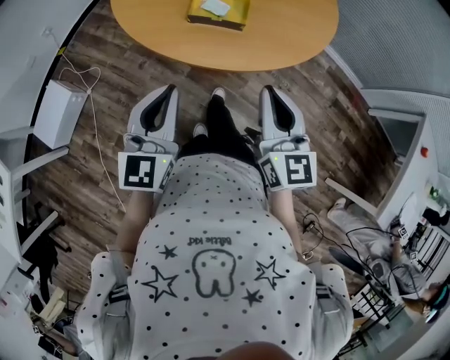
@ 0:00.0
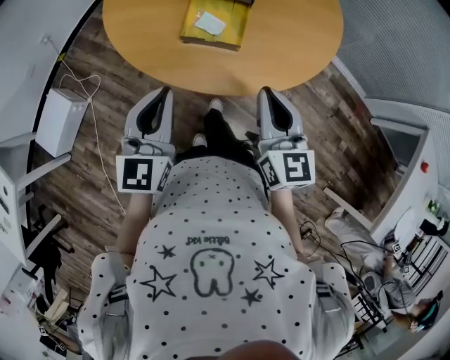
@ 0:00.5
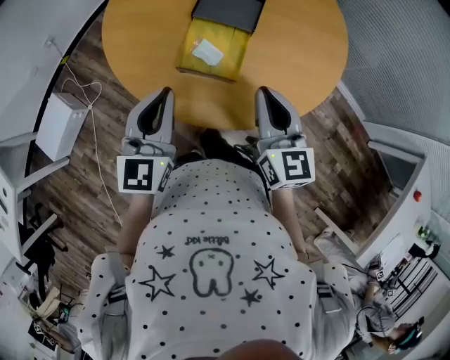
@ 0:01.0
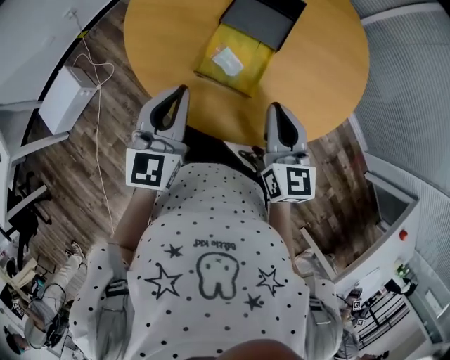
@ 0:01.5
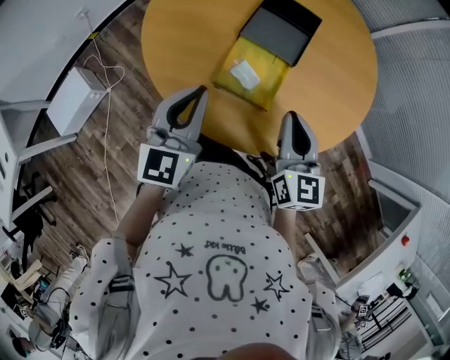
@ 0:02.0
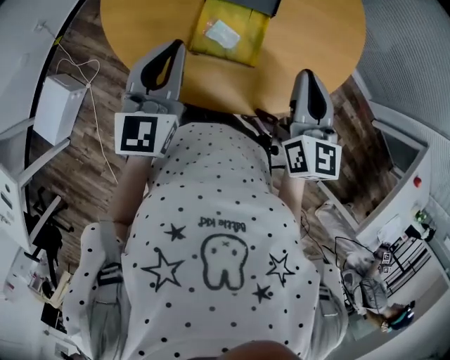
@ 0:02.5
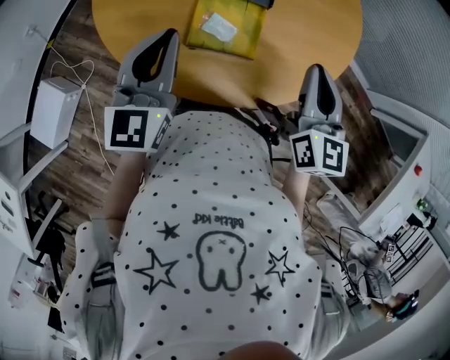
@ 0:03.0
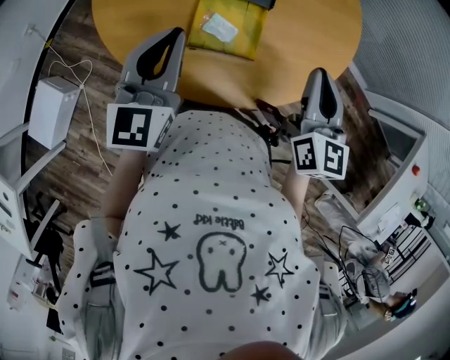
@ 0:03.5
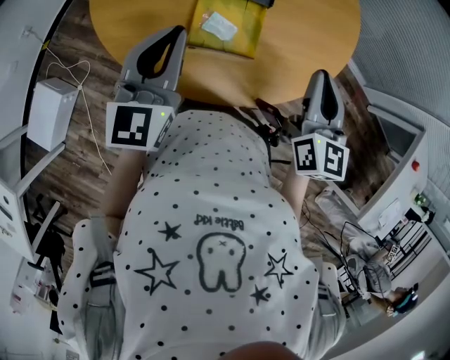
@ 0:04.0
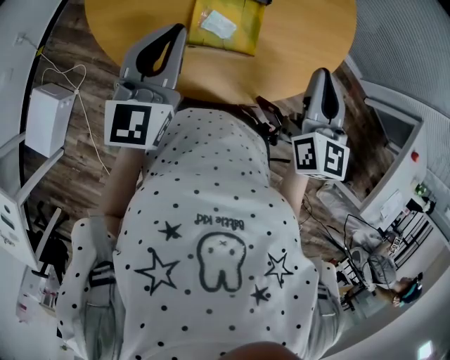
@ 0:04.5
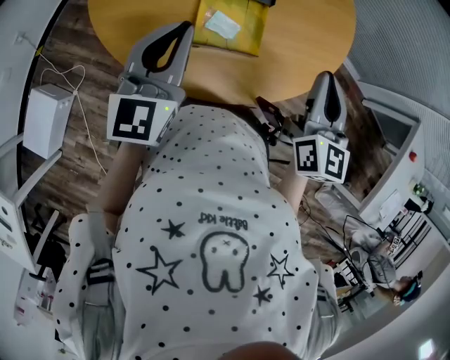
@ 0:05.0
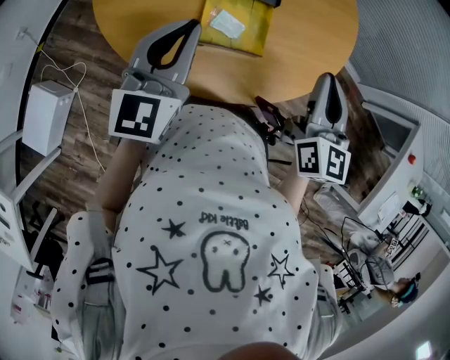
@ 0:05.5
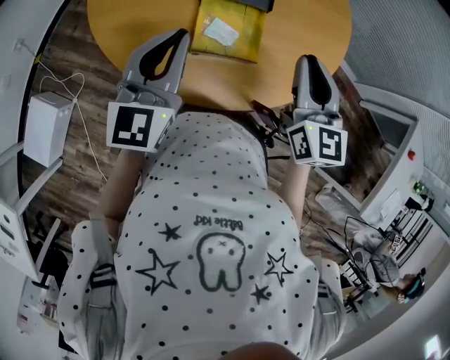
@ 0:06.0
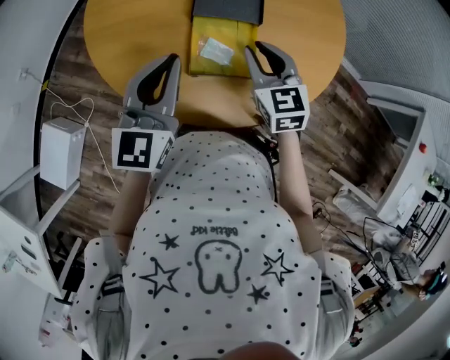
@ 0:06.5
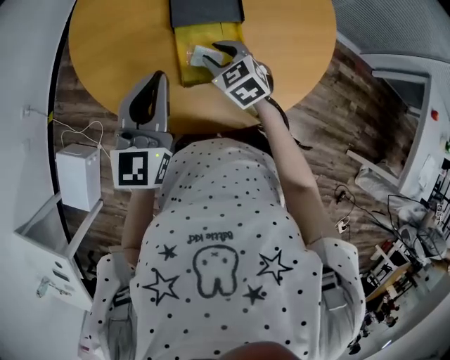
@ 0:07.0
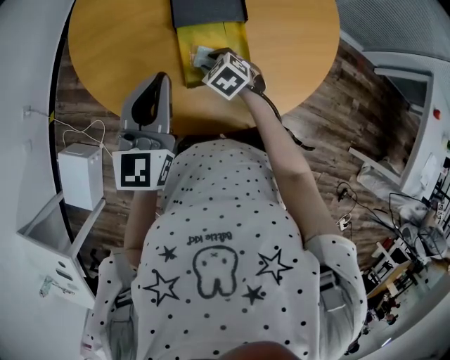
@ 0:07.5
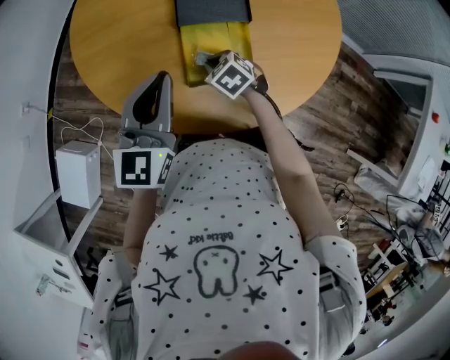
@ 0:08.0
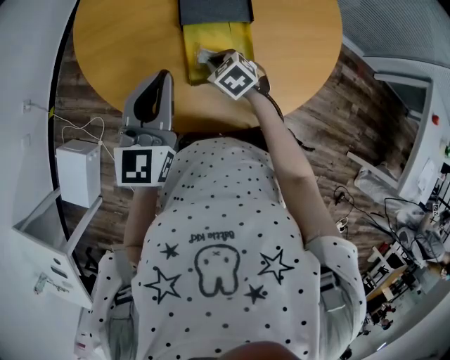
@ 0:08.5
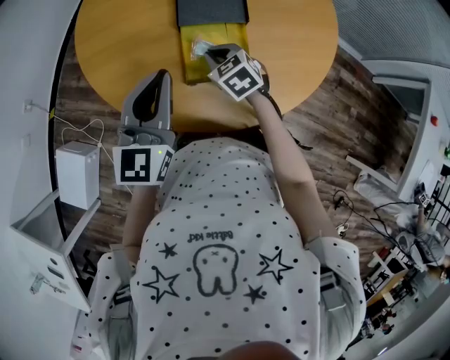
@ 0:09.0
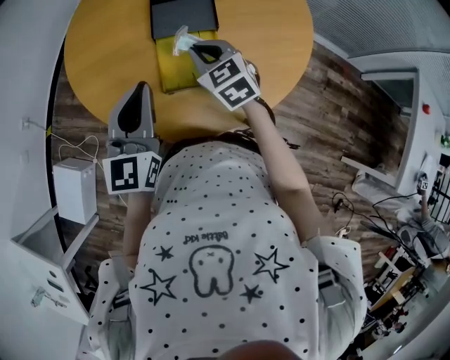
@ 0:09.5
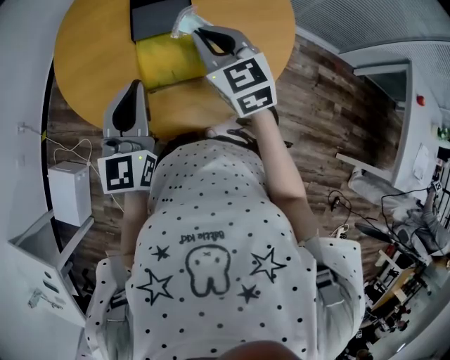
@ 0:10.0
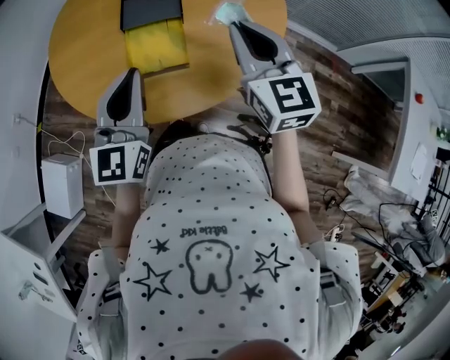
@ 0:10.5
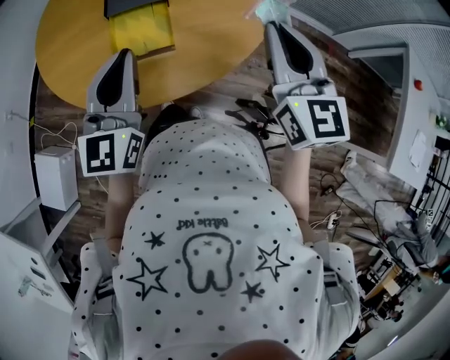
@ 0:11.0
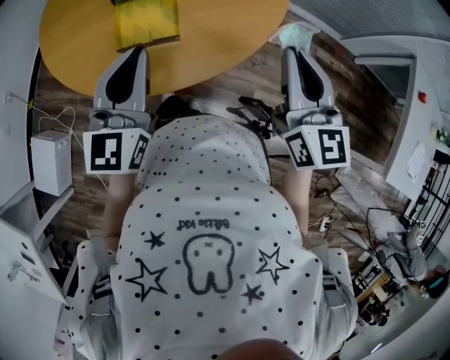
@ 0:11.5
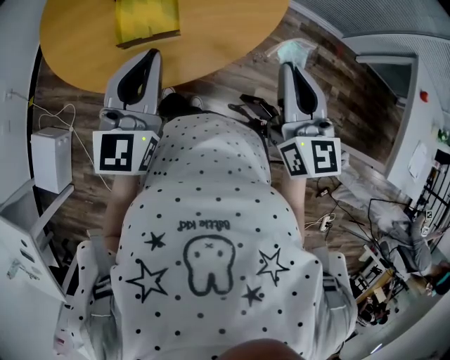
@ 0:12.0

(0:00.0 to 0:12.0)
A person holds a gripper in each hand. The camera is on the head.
0:00.0 - 0:02.0: The grippers both shift forward by roughly 25 cm.
0:02.0 - 0:04.0: The right gripper moves to the right, approximately 10 cm, and rotates some 20 degrees. Meanwhile the left gripper changes place by approximately 5 cm.
0:04.0 - 0:06.0: The right gripper is displaced to the left by approximately 10 cm.
0:06.0 - 0:08.0: The right gripper heads downward and to the left, covering some 30 cm, points its fingers about 50 degrees further downward, and opens, then closes once more.
0:08.0 - 0:10.0: The right gripper goes roughly 30 cm upward and to the right, and angles its fingers upward, by about 40 degrees. Meanwhile the left gripper is displaced to the right and backward by some 10 cm.
0:10.0 - 0:12.0: The left gripper goes some 15 cm to the right and backward, while the right gripper travels to the right and backward by approximately 30 cm, and turns by about 30 degrees.

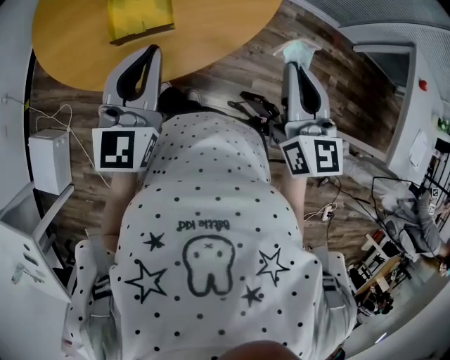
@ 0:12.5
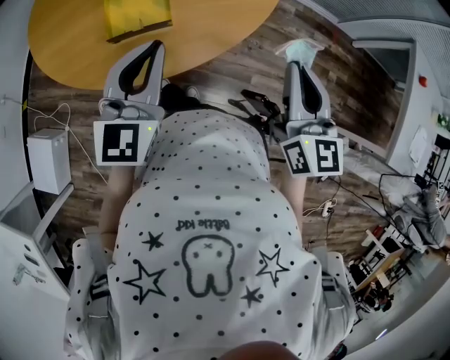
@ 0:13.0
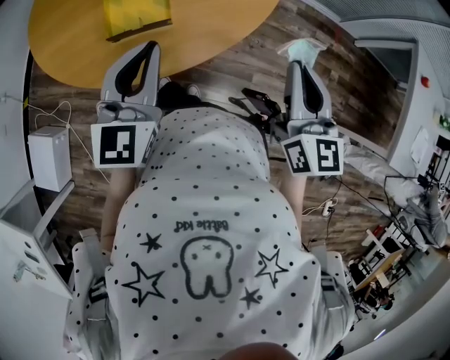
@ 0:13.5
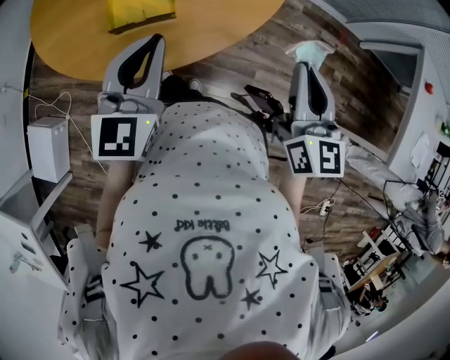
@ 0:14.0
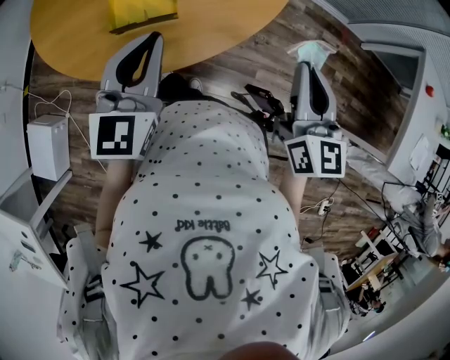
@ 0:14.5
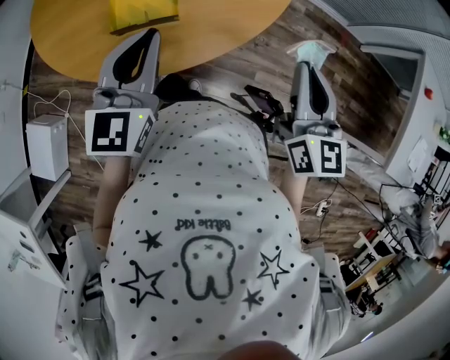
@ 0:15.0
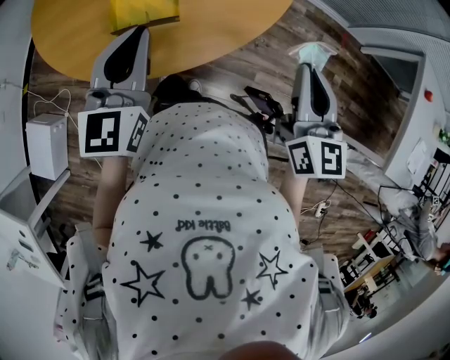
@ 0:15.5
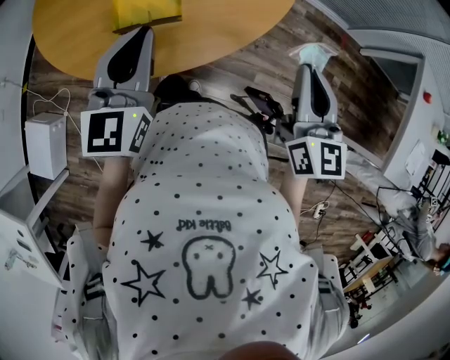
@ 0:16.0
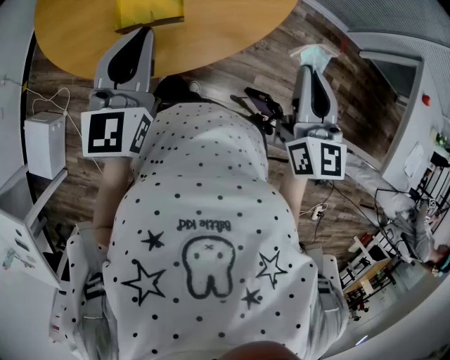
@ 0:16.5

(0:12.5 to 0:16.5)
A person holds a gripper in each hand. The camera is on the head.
0:12.5 - 0:16.5: There are only small adjustments of the grippers.

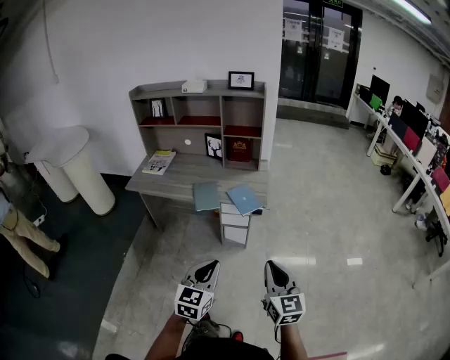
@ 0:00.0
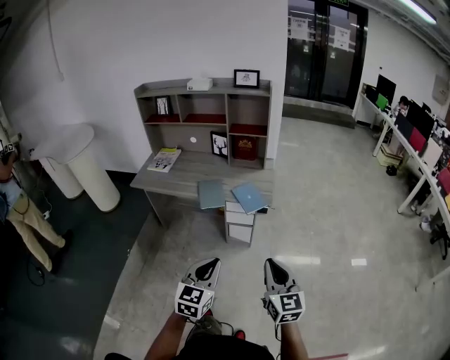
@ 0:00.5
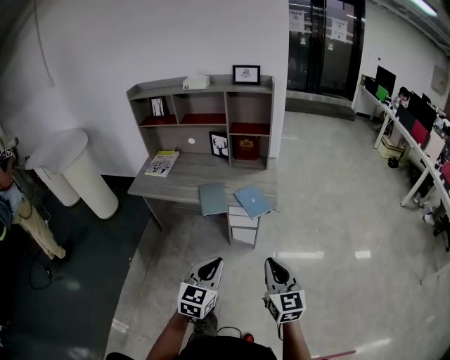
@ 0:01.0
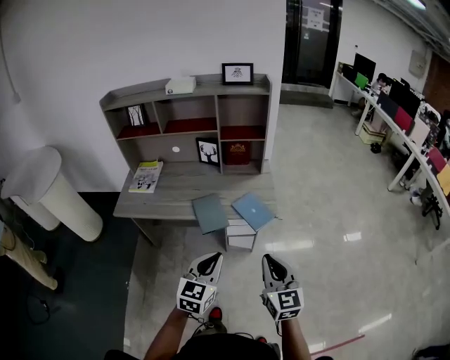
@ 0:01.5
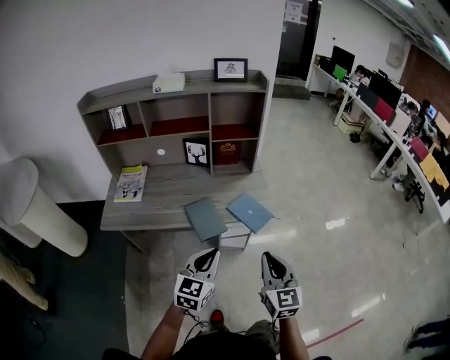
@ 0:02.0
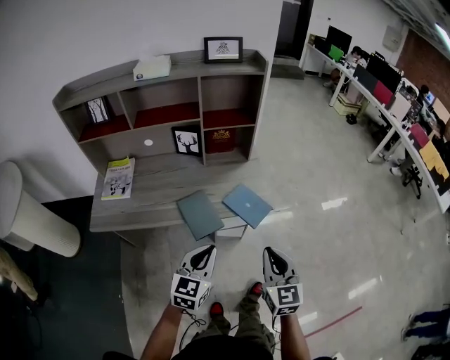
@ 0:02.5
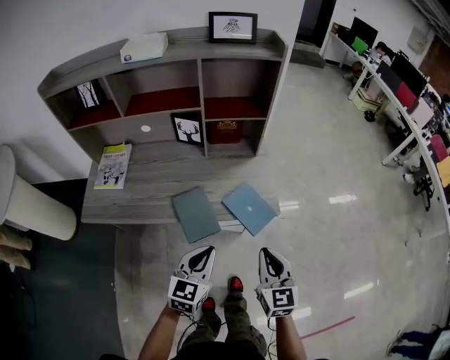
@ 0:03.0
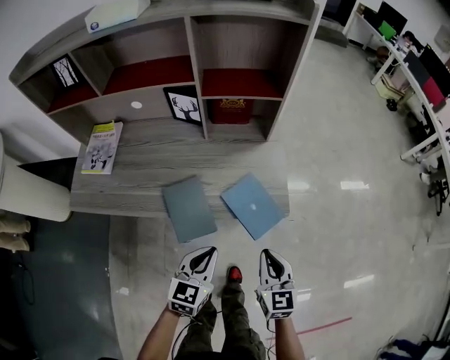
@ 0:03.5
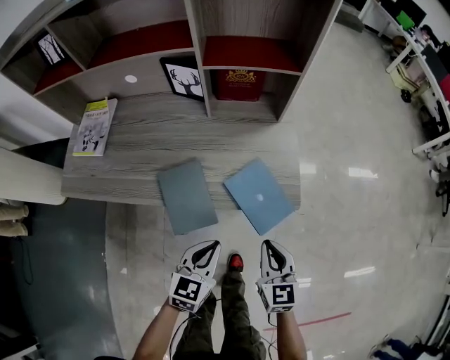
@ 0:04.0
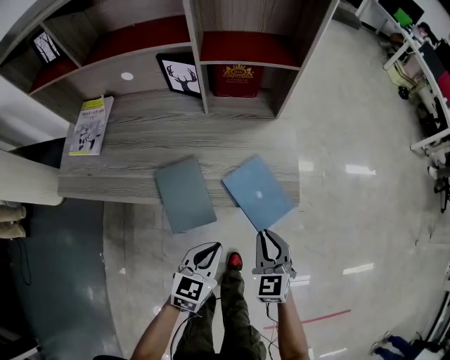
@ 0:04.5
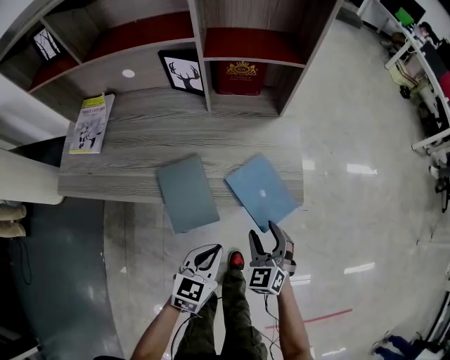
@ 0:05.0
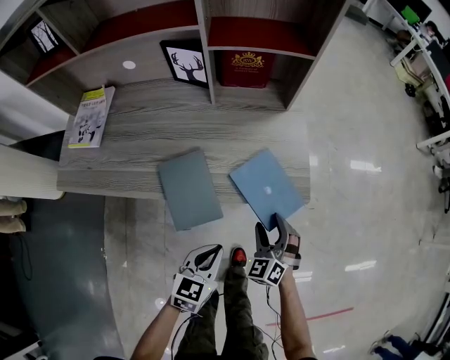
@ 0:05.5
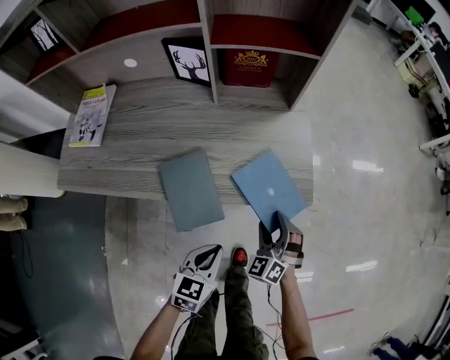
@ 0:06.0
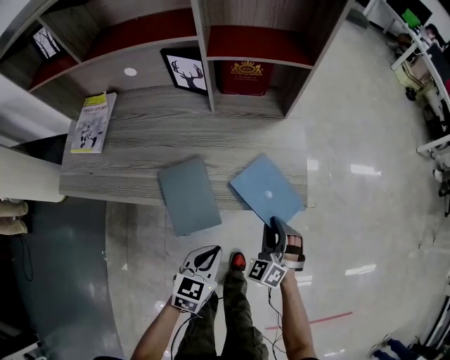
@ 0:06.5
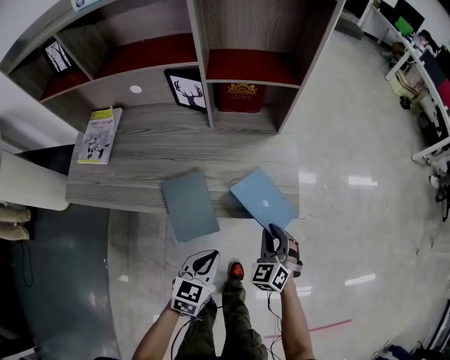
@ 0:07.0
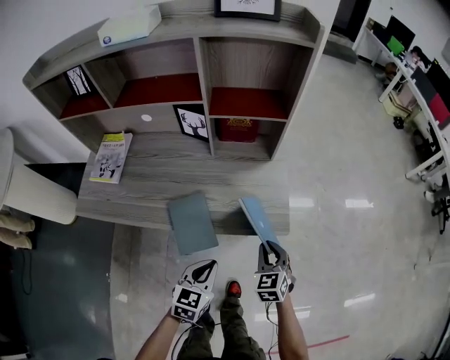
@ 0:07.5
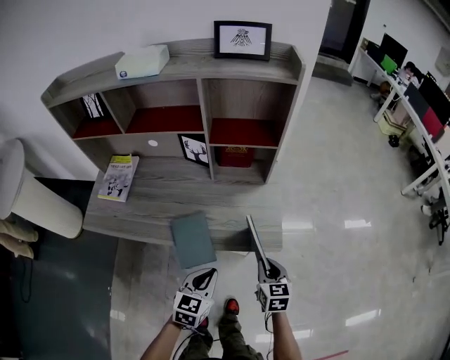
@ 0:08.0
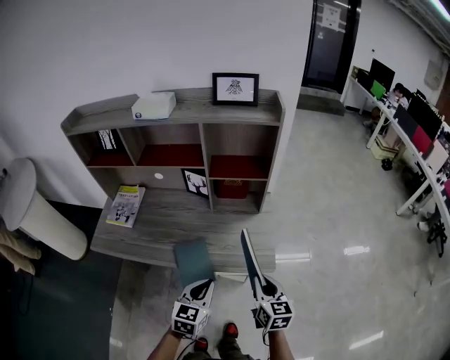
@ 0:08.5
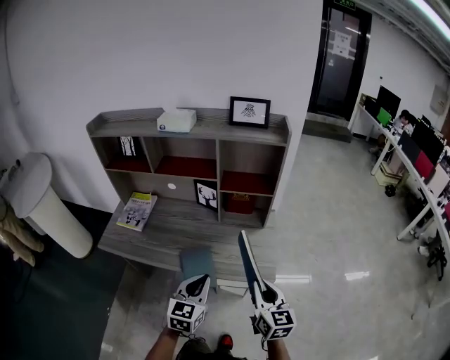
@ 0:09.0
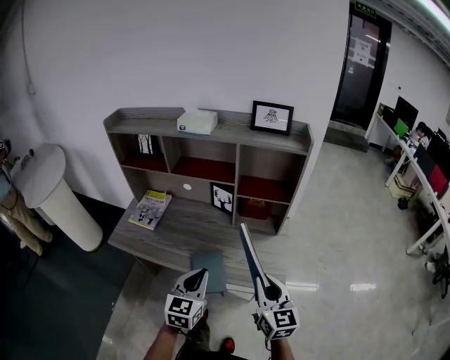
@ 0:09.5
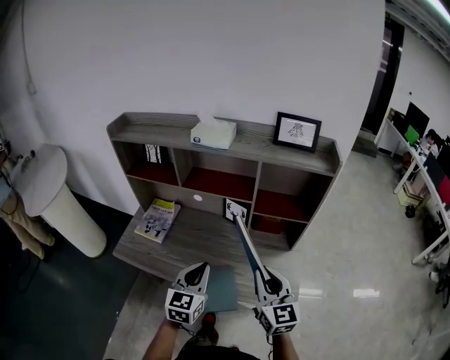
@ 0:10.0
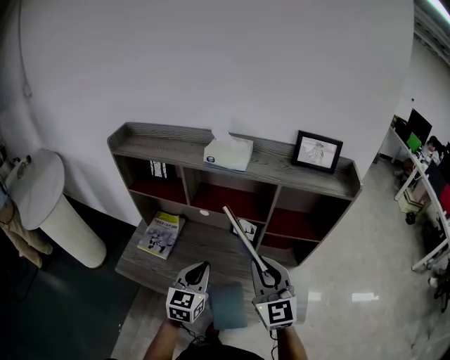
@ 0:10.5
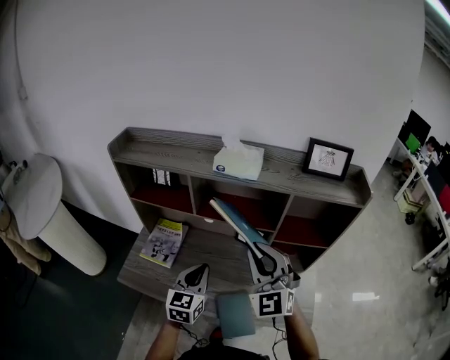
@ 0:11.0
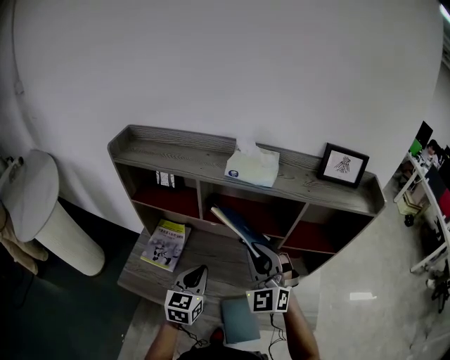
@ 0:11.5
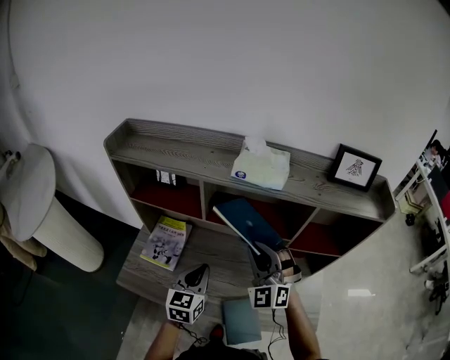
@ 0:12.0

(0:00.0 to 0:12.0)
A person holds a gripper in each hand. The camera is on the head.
0:00.0 - 0:02.0: Both grippers move forward and to the left, approximately 30 cm.
0:02.0 - 0:04.0: Both grippers travel together downward and forward, some 30 cm. The right gripper swivels roughly 20 degrees, while the left gripper rotates some 20 degrees.
0:04.0 - 0:06.0: The left gripper is displaced downward by roughly 5 cm. The right gripper shifts approximately 10 cm downward, rotates around the line of its fingers by approximately 50 degrees, counterclockwise from behind, and opens its fingers.
0:06.0 - 0:08.0: Both grippers move upward, roughly 15 cm. The right gripper rolls clockwise, seen from behind, by some 50 degrees, and closes.
0:08.0 - 0:10.0: The right gripper travels upward and to the left by about 30 cm, and angles its fingers upward, by some 30 degrees. Meanwhile the left gripper travels upward, to the left and forward by some 25 cm, and swivels about 30 degrees.
0:10.0 - 0:12.0: The grippers both shift forward and to the left by roughly 25 cm. The right gripper twists approximately 60 degrees counterclockwise, seen from behind.
